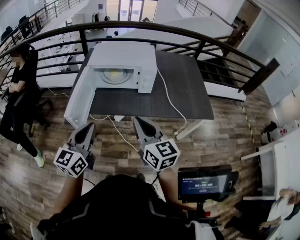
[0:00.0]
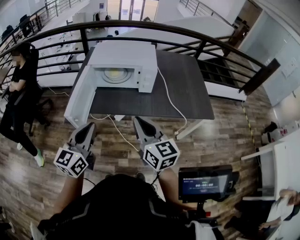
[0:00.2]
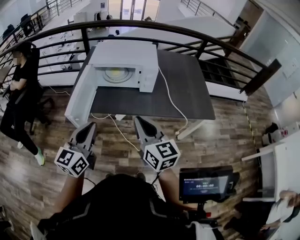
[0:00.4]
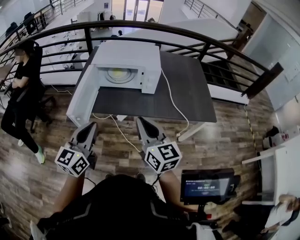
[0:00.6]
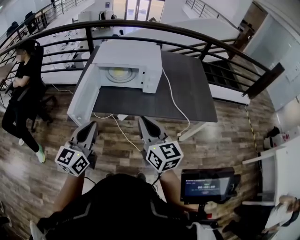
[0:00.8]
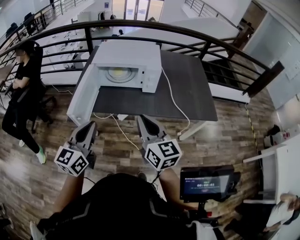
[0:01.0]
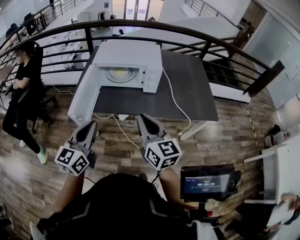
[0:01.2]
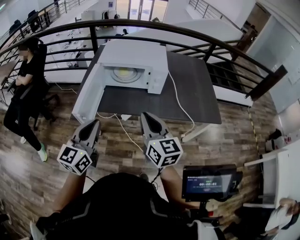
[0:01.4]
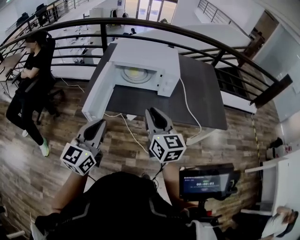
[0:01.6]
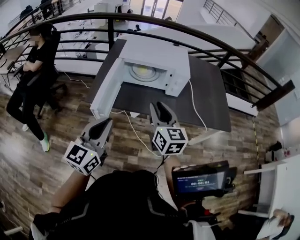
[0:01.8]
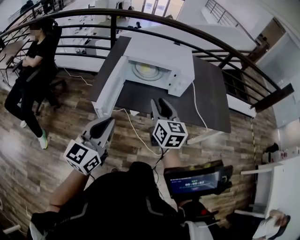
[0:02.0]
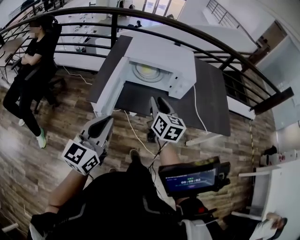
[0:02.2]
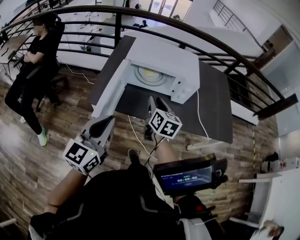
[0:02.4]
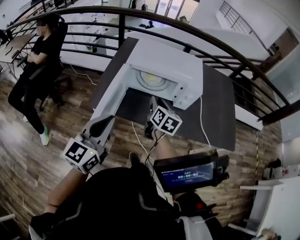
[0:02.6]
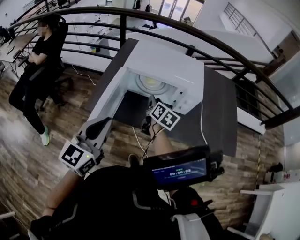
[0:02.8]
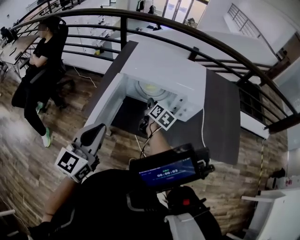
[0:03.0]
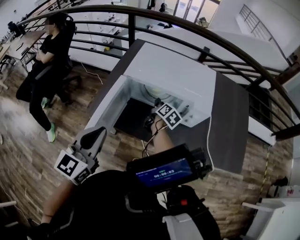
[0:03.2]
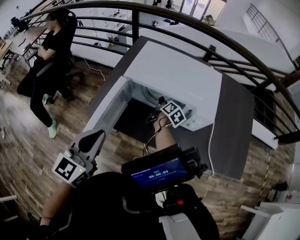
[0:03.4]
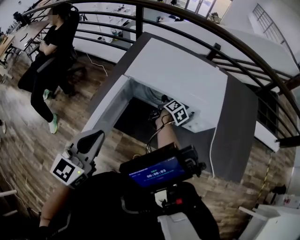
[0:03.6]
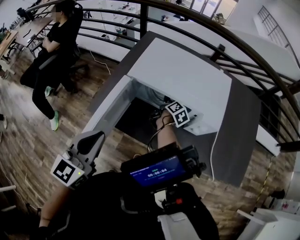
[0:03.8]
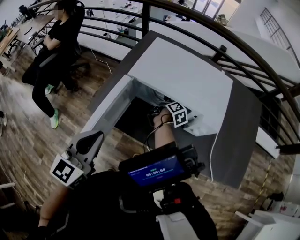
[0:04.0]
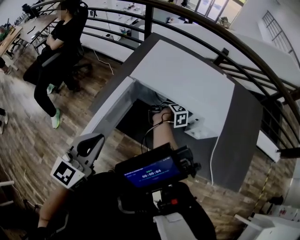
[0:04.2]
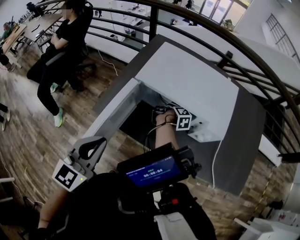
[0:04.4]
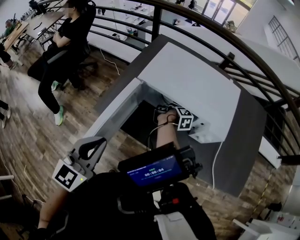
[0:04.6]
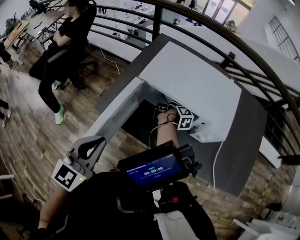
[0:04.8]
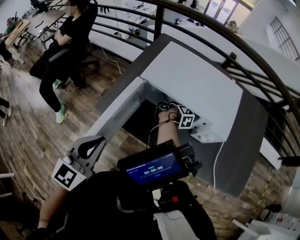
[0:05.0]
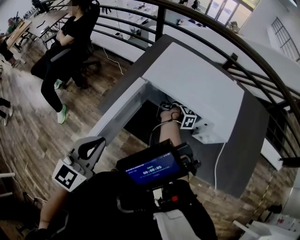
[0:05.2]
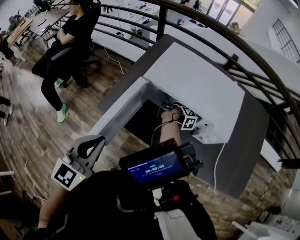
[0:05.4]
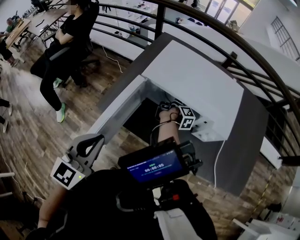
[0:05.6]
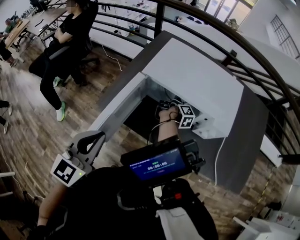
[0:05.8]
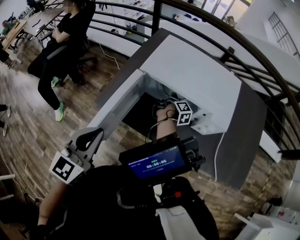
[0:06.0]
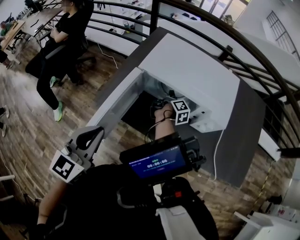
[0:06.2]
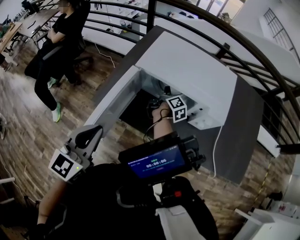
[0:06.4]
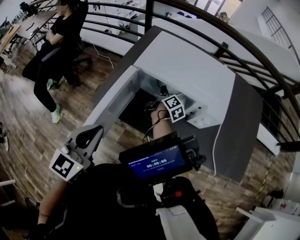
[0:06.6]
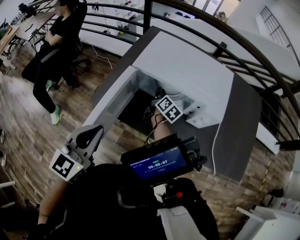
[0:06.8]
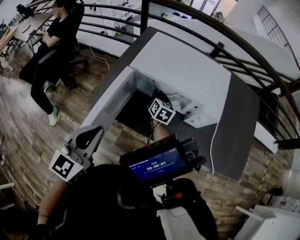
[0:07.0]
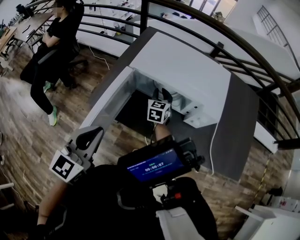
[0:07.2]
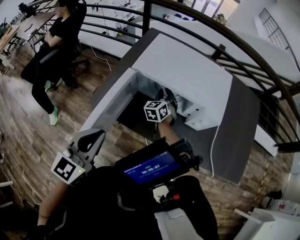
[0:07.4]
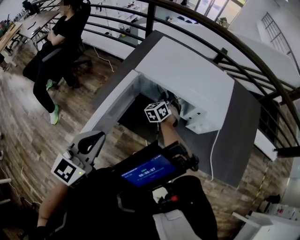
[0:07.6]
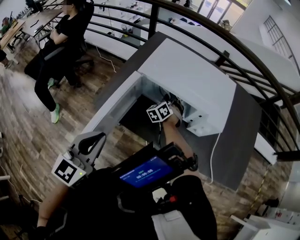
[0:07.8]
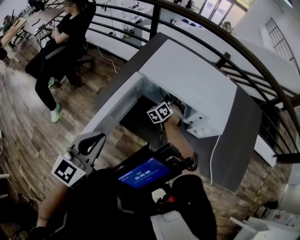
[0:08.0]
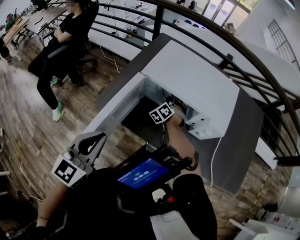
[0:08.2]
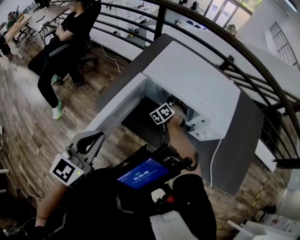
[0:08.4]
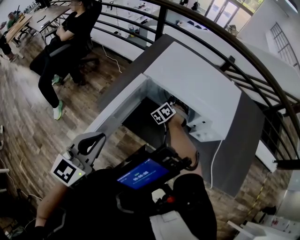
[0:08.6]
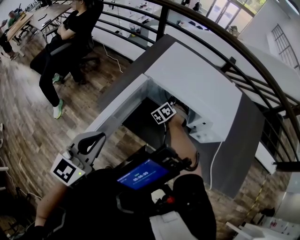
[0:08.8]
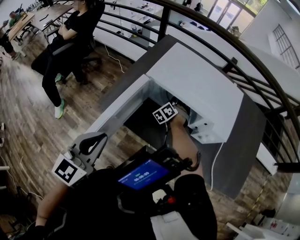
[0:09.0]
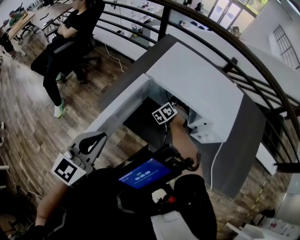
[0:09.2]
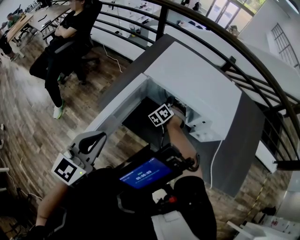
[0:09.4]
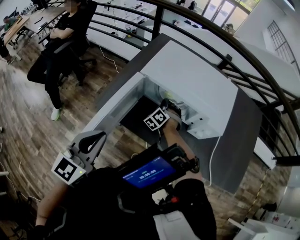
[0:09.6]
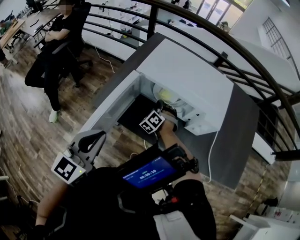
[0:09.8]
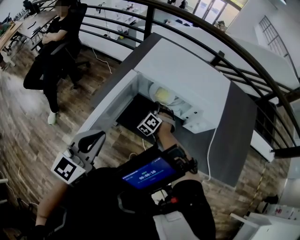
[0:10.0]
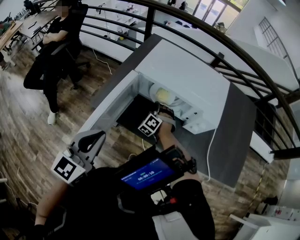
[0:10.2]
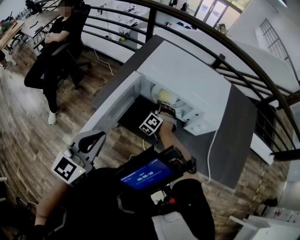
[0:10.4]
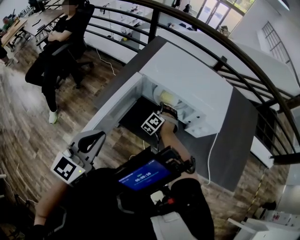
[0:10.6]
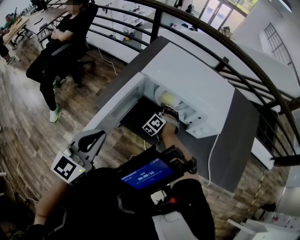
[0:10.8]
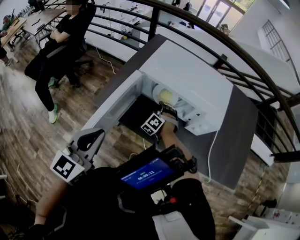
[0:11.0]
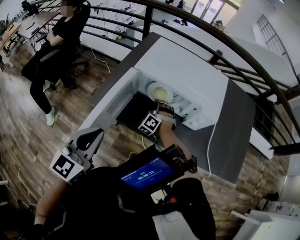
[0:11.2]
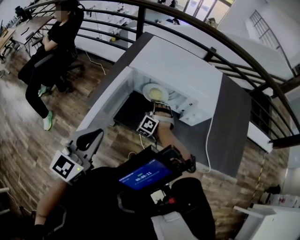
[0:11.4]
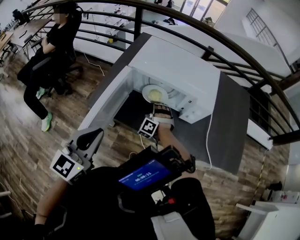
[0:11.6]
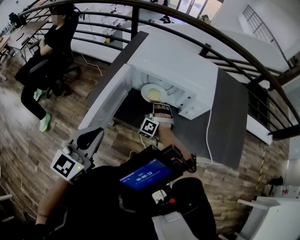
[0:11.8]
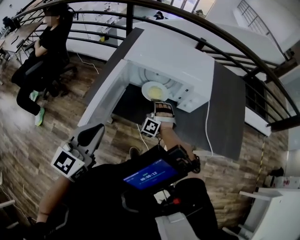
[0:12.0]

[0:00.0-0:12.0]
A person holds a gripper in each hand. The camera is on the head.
0:00.0 to 0:01.6: The right gripper shifts about 5 cm forward.
0:01.6 to 0:03.0: The left gripper travels forward by about 15 cm, while the right gripper is displaced forward and downward by about 40 cm, and rotates approximately 40 degrees.
0:03.0 to 0:04.4: The left gripper ends up roughly 5 cm from where it was. The right gripper travels forward and downward by approximately 15 cm, twists about 40 degrees clockwise, seen from behind, and closes its fingers.
0:04.4 to 0:06.0: The grippers make only small movements.
0:06.0 to 0:07.6: The right gripper rotates around the line of its fingers by approximately 130 degrees, counterclockwise from behind.
0:07.6 to 0:09.0: The right gripper rotates roughly 20 degrees.
0:09.0 to 0:10.4: The right gripper moves backward, approximately 10 cm.
0:10.4 to 0:12.0: The right gripper moves backward, roughly 10 cm.

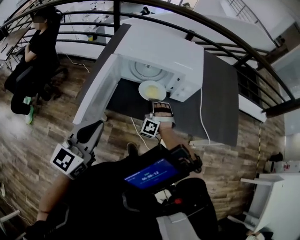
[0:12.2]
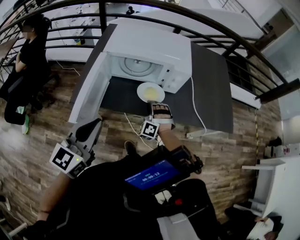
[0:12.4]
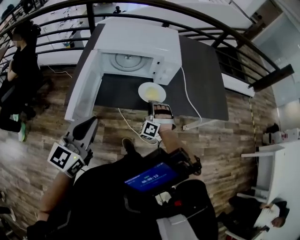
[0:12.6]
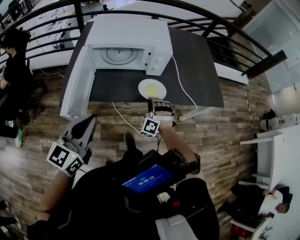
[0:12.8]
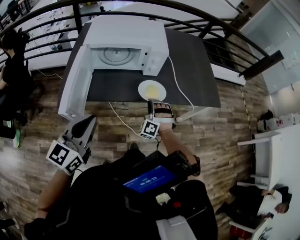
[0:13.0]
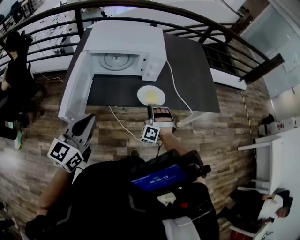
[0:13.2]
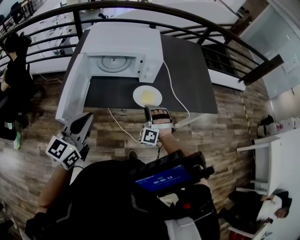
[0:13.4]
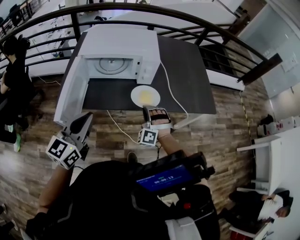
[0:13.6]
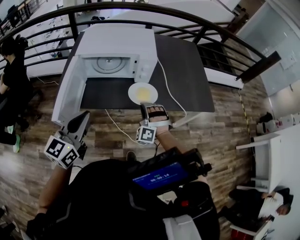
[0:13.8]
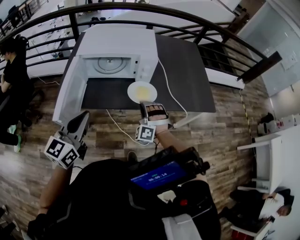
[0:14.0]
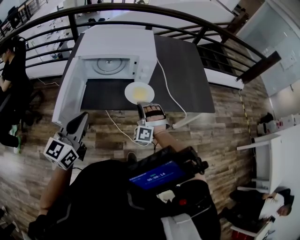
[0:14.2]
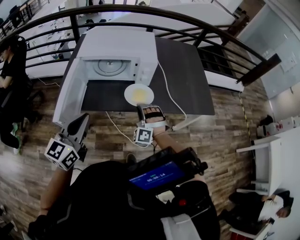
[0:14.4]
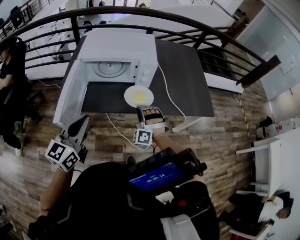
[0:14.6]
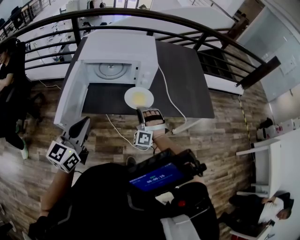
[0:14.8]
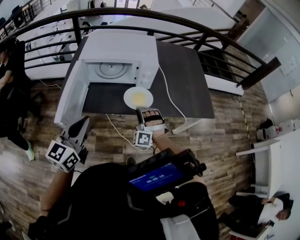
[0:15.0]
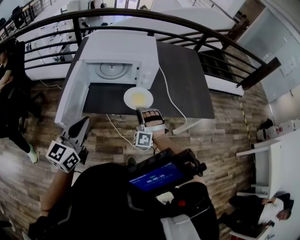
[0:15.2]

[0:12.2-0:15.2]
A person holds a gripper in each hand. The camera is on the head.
0:12.2 to 0:13.8: The left gripper goes approximately 5 cm to the right; the right gripper heads to the right, covering roughly 15 cm.
0:13.8 to 0:15.2: The grippers make only small movements.

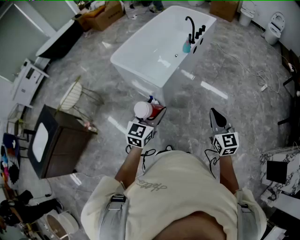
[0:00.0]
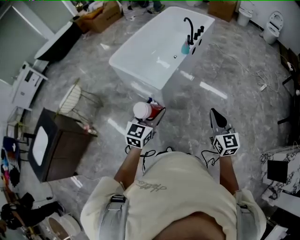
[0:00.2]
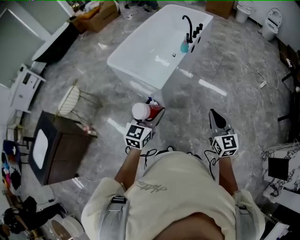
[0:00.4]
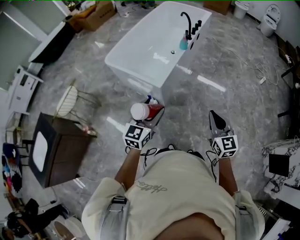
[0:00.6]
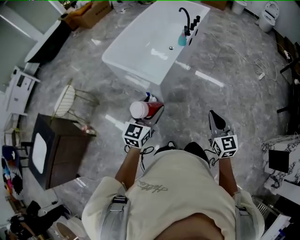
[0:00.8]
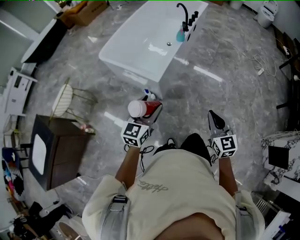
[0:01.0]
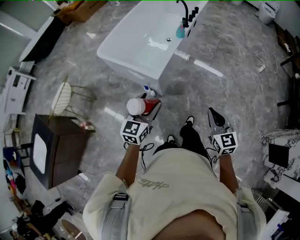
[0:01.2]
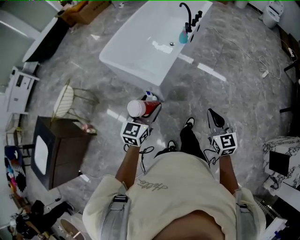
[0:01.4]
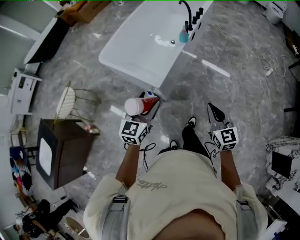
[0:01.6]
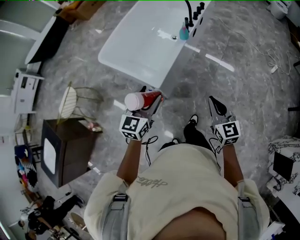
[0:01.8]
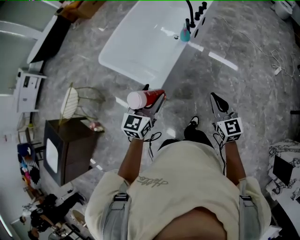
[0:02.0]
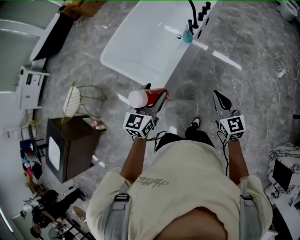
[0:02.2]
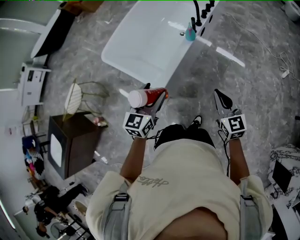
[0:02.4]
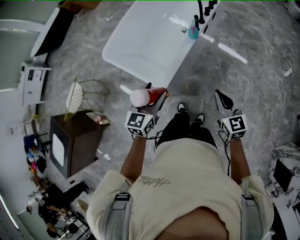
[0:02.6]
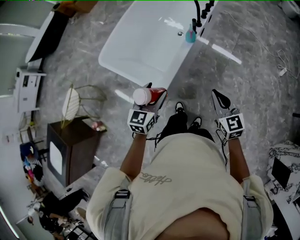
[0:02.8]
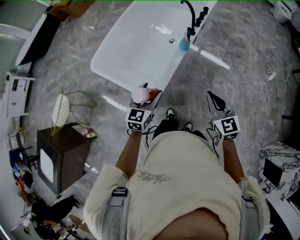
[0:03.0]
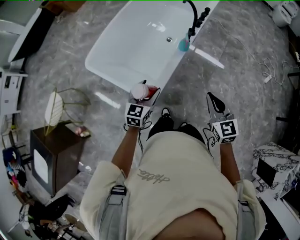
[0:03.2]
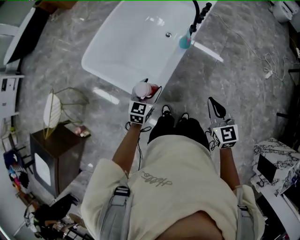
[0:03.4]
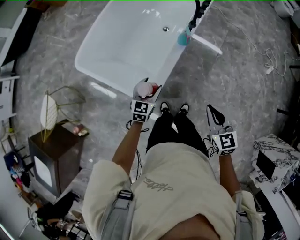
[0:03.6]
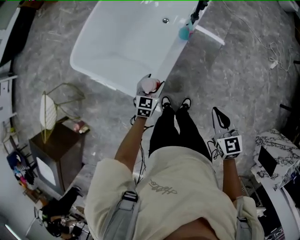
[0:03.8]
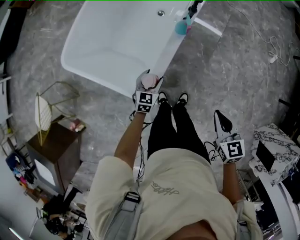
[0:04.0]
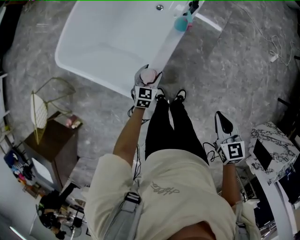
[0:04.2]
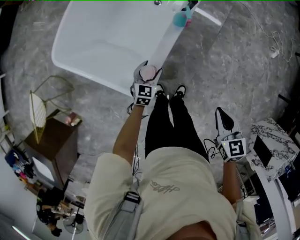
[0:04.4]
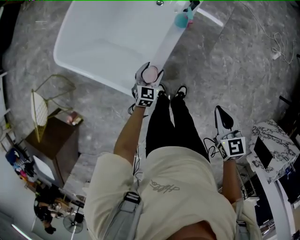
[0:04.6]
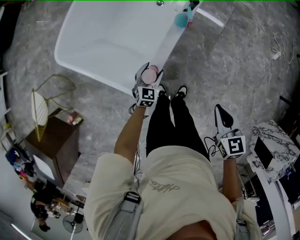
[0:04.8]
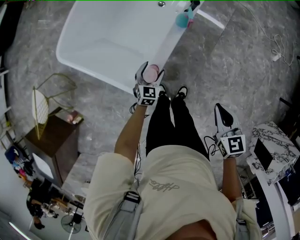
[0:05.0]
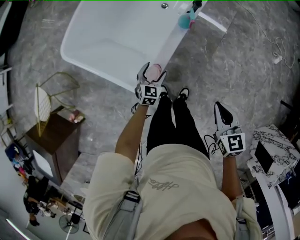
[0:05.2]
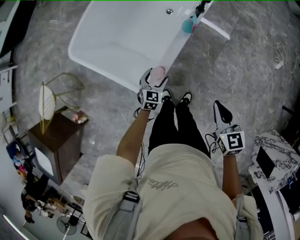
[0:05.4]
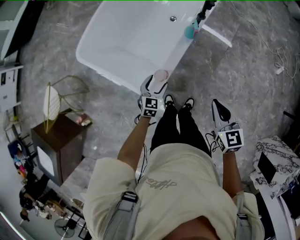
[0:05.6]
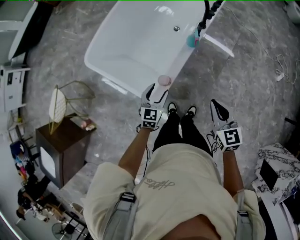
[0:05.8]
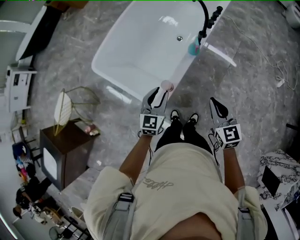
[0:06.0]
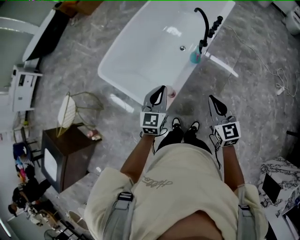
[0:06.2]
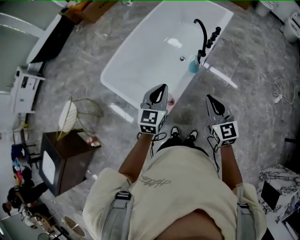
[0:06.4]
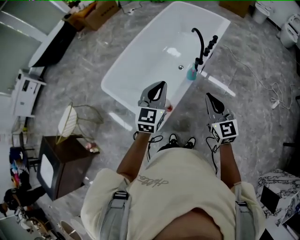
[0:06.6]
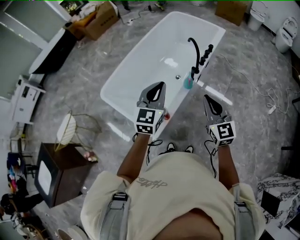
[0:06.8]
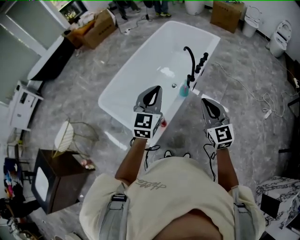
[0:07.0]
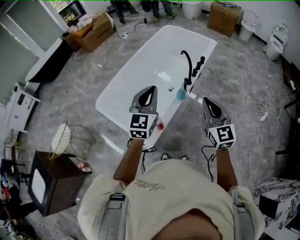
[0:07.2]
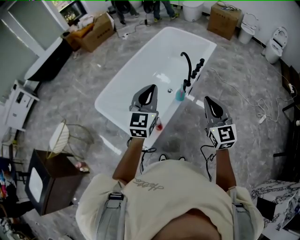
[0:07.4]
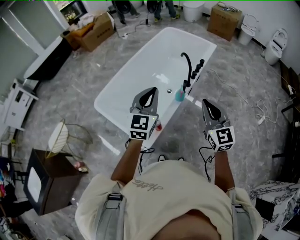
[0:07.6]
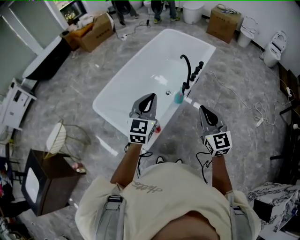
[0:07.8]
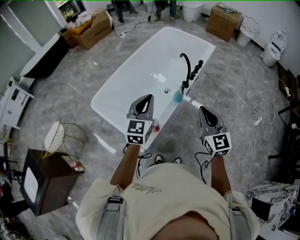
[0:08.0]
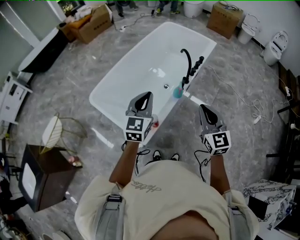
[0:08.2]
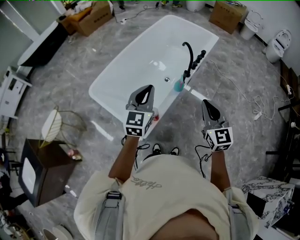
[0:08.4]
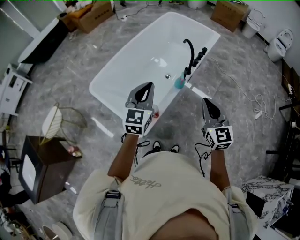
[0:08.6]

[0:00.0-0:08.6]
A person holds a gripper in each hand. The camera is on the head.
0:00.0 to 0:01.4: The left gripper goes roughly 10 cm forward, while the right gripper travels forward and downward by about 10 cm.
0:01.4 to 0:02.8: The two grippers go roughly 25 cm forward.
0:02.8 to 0:04.4: The left gripper shifts about 35 cm downward and forward. Meanwhile the right gripper shifts roughly 10 cm downward, and swivels some 30 degrees.
0:04.4 to 0:05.8: The left gripper travels upward and backward by roughly 15 cm. Meanwhile the right gripper goes about 5 cm to the left and upward.
0:05.8 to 0:07.2: The left gripper is displaced upward by roughly 35 cm, swivels about 30 degrees, and closes its fingers. Meanwhile the right gripper is displaced upward by approximately 20 cm, and swivels roughly 30 degrees.
0:07.2 to 0:08.6: There are only small adjustments of the grippers.
